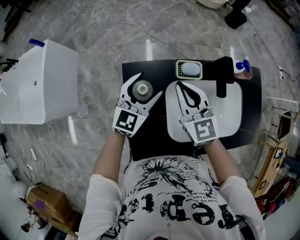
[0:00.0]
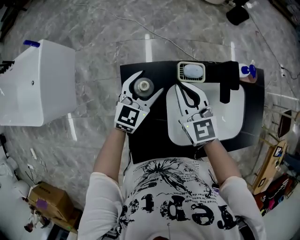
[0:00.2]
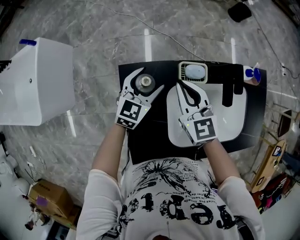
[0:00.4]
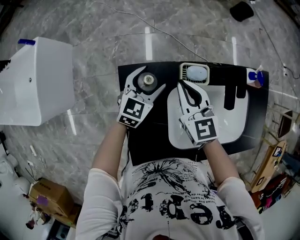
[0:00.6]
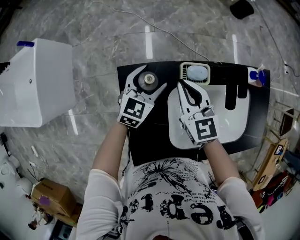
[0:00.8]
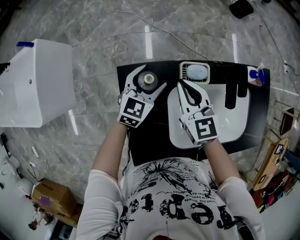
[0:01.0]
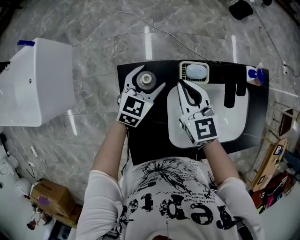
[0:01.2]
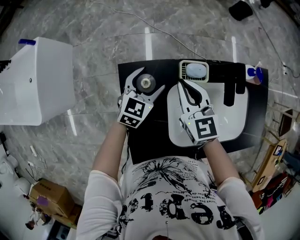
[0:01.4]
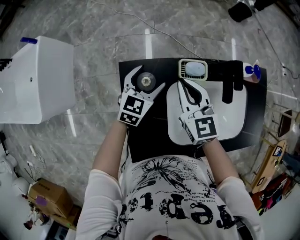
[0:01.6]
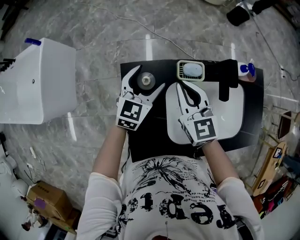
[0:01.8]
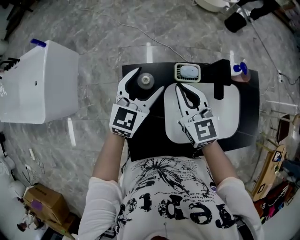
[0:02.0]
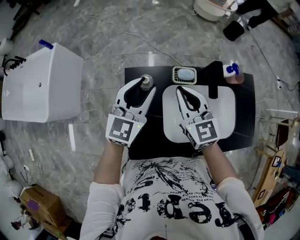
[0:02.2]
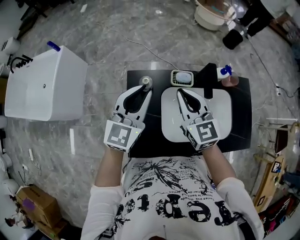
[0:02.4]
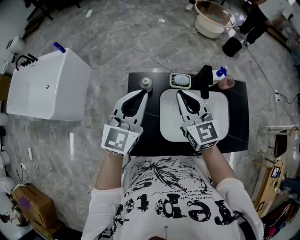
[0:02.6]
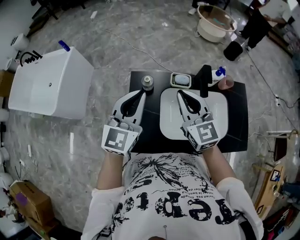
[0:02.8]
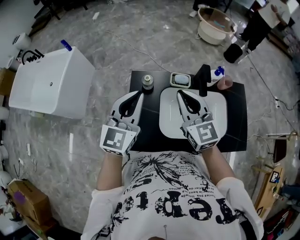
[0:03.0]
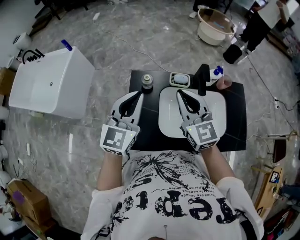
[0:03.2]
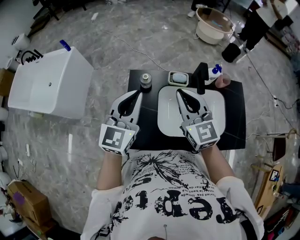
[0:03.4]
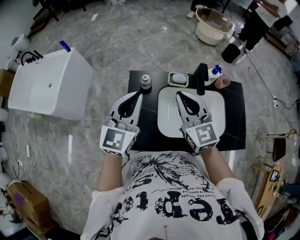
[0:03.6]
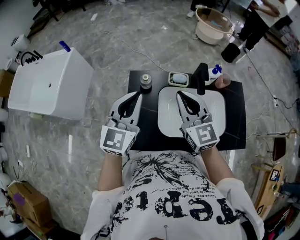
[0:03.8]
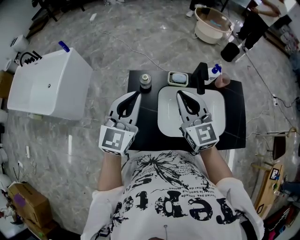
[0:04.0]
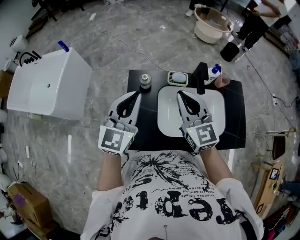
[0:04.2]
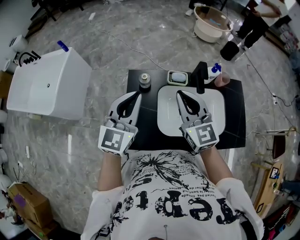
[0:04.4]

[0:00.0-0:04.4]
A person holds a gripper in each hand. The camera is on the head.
0:00.0 to 0:01.4: The right gripper travels downward by some 5 cm. Meanwhile the left gripper moves downward and forward, some 10 cm.
0:01.4 to 0:03.0: The grippers both shift upward and backward by about 35 cm. The left gripper rotates some 30 degrees, and closes its fingers.
0:03.0 to 0:04.4: The two grippers keep their place.

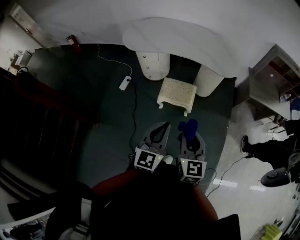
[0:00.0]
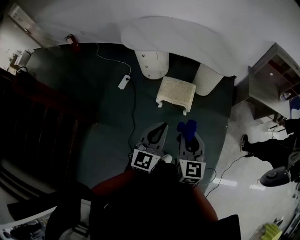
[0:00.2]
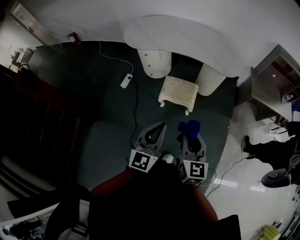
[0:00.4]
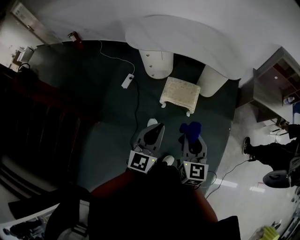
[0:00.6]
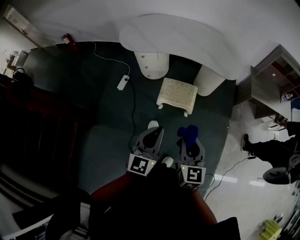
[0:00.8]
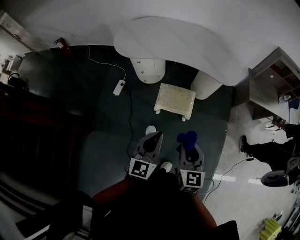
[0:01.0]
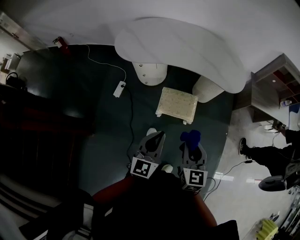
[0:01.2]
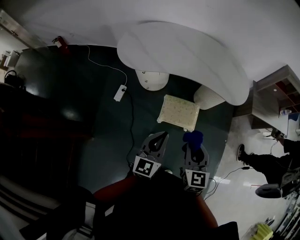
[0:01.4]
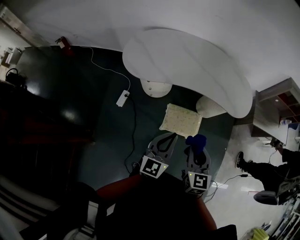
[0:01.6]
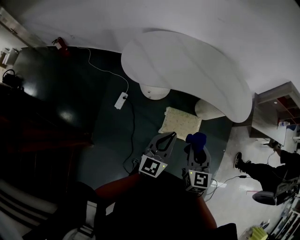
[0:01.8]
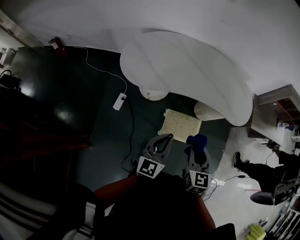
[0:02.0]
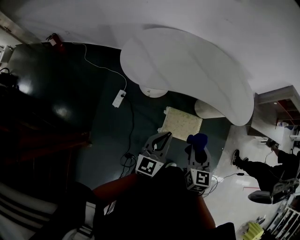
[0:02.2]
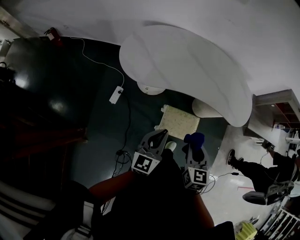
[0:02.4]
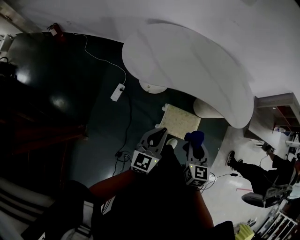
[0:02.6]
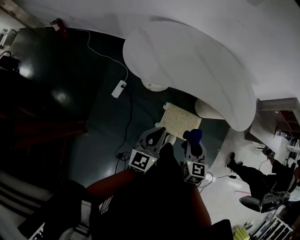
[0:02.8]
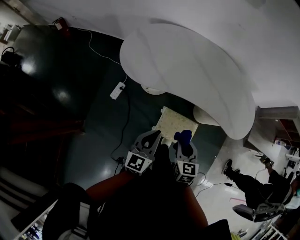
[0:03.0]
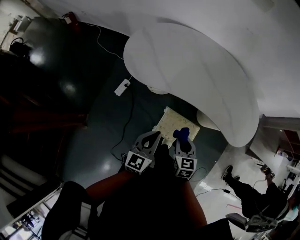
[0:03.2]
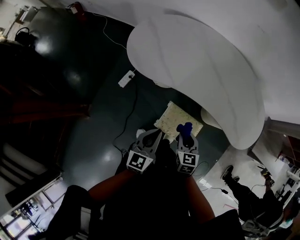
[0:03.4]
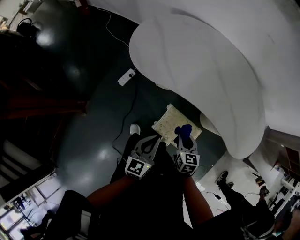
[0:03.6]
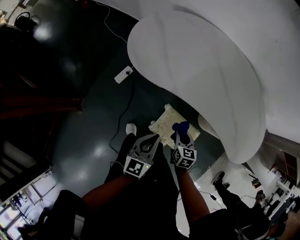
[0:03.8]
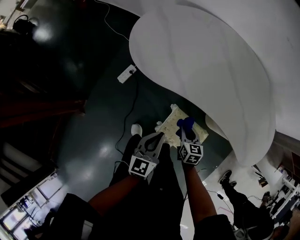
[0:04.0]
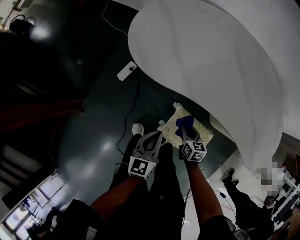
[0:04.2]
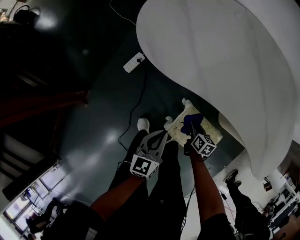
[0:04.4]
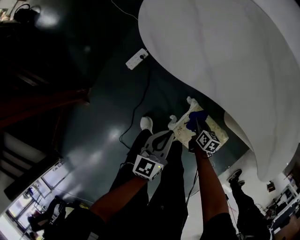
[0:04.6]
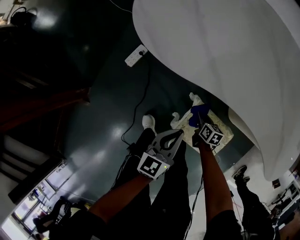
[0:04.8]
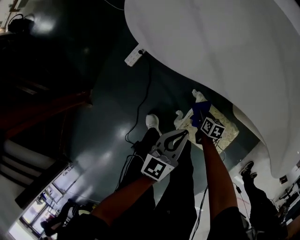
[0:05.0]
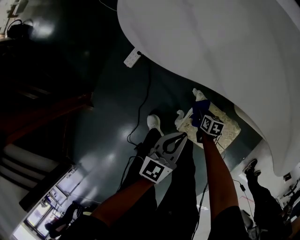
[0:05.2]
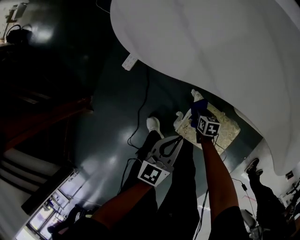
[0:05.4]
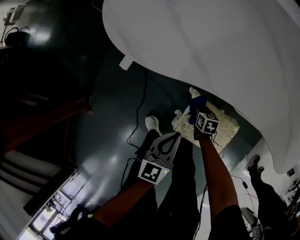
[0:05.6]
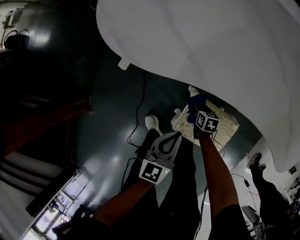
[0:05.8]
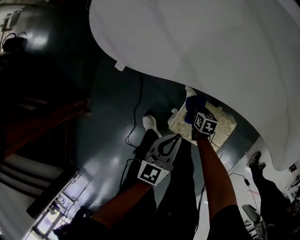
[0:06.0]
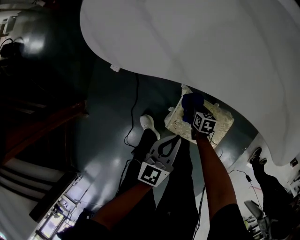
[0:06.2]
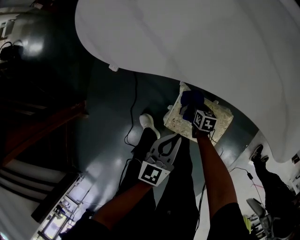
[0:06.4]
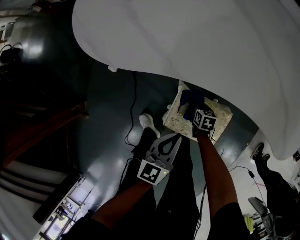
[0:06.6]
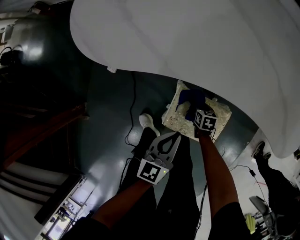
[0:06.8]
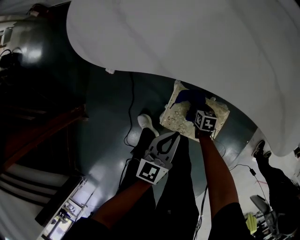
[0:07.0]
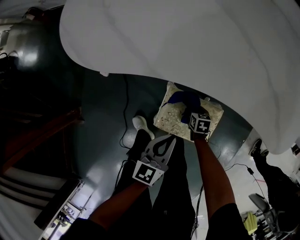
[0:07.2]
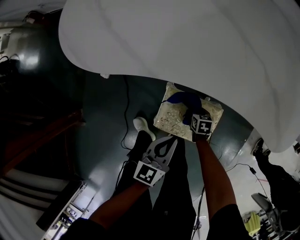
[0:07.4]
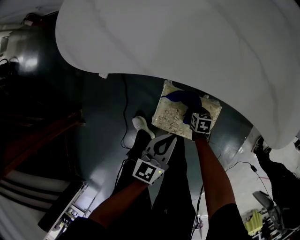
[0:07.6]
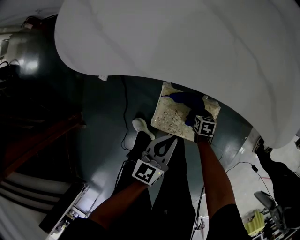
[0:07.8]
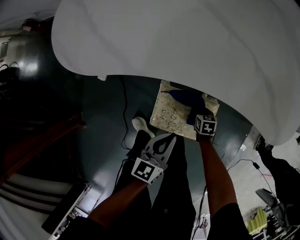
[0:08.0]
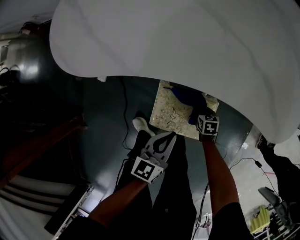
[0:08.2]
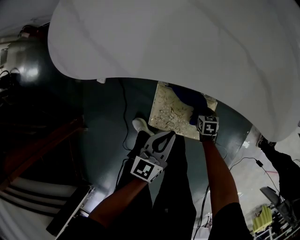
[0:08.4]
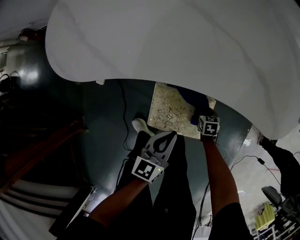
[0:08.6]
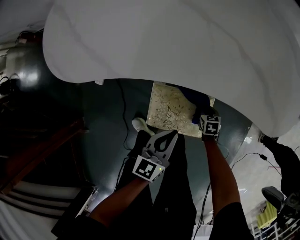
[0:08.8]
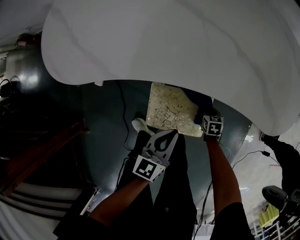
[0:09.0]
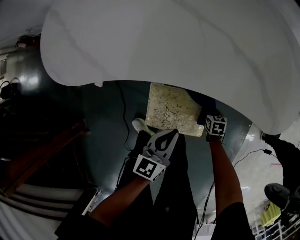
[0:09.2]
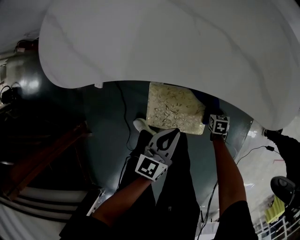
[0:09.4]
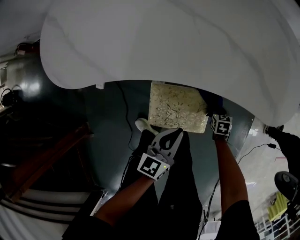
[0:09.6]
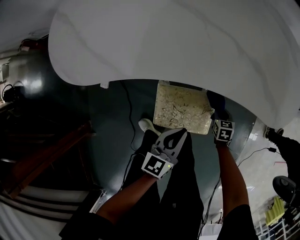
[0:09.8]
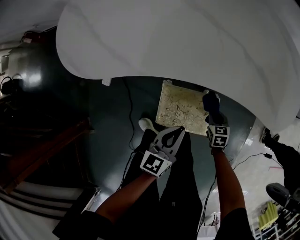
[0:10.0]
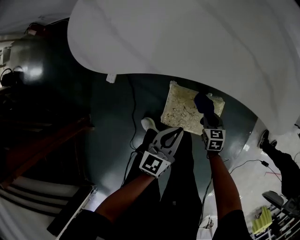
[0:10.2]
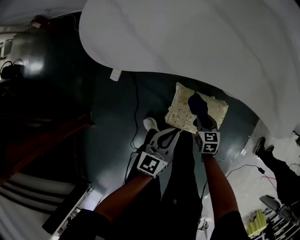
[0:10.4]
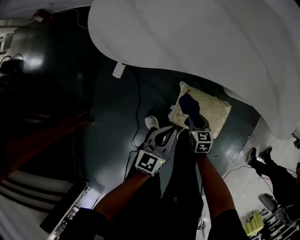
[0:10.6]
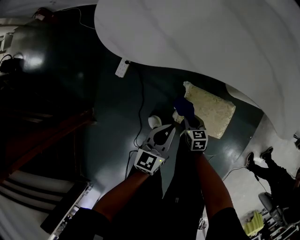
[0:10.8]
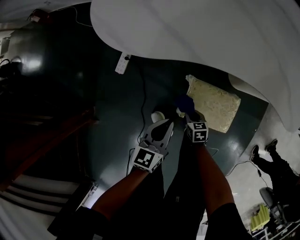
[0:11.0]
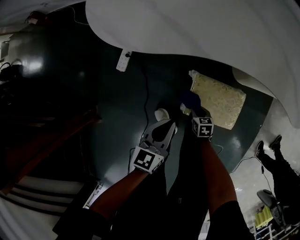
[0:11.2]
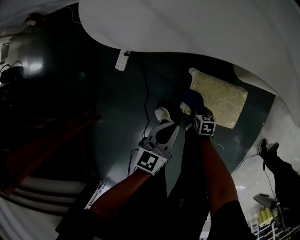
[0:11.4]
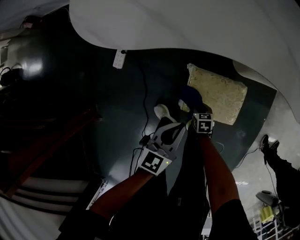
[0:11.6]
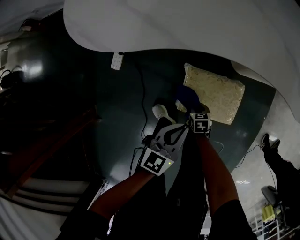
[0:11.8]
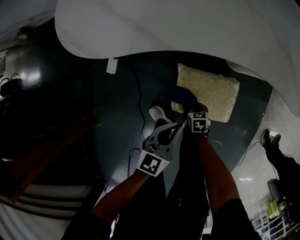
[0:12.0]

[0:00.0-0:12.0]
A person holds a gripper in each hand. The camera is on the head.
0:00.0 to 0:01.6: The grippers both shift forward and to the left by roughly 30 cm.
0:01.6 to 0:03.0: The left gripper travels forward, downward and to the left by approximately 15 cm. Meanwhile the right gripper is displaced forward and downward by roughly 20 cm.
0:03.0 to 0:04.4: The right gripper moves downward, some 40 cm, and swivels roughly 40 degrees. Meanwhile the left gripper goes about 25 cm downward, and turns by approximately 20 degrees.
0:04.4 to 0:06.0: The left gripper heads to the right and downward, covering roughly 10 cm. Meanwhile the right gripper is displaced downward by some 10 cm.
0:06.0 to 0:07.6: The right gripper goes approximately 15 cm to the right and backward, while the left gripper goes some 10 cm to the right.
0:07.6 to 0:09.0: The right gripper moves to the right, some 10 cm. Meanwhile the left gripper goes roughly 5 cm to the right.
0:09.0 to 0:10.4: The left gripper goes roughly 10 cm to the left, while the right gripper heads to the left and upward, covering some 25 cm.
0:10.4 to 0:12.0: The right gripper shifts some 20 cm downward, backward and to the left; the left gripper moves roughly 10 cm to the left and comes back.

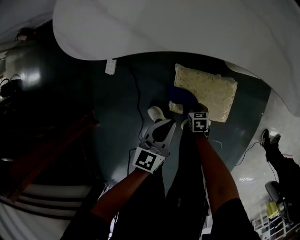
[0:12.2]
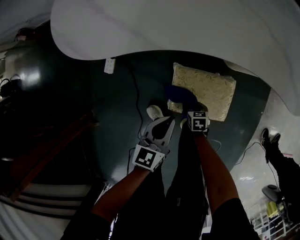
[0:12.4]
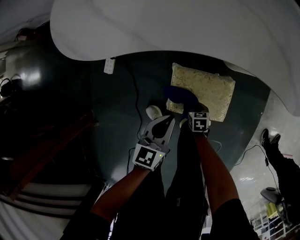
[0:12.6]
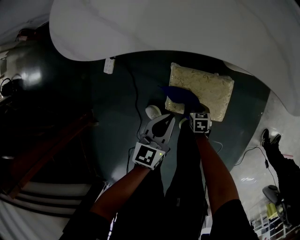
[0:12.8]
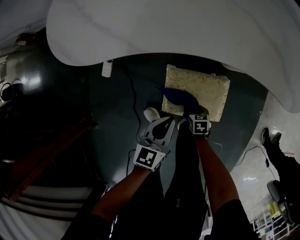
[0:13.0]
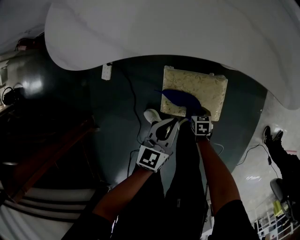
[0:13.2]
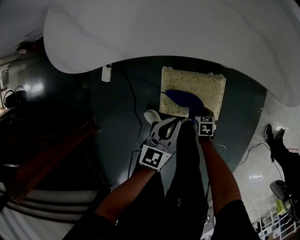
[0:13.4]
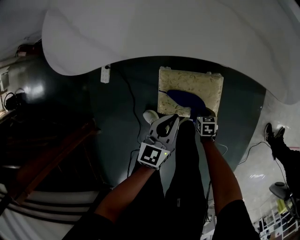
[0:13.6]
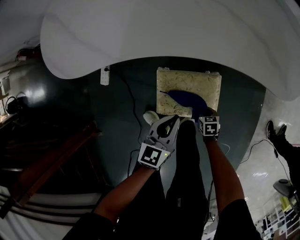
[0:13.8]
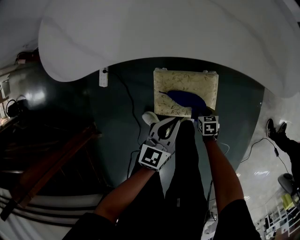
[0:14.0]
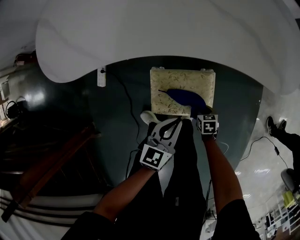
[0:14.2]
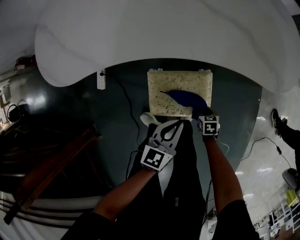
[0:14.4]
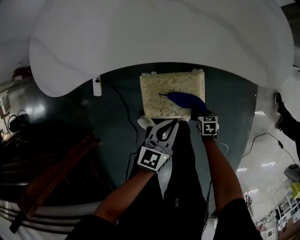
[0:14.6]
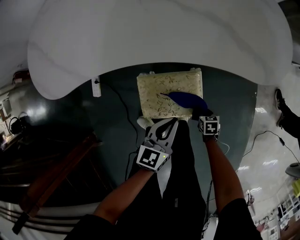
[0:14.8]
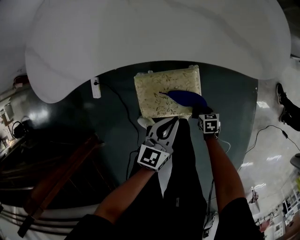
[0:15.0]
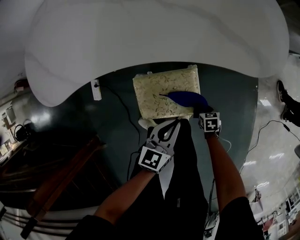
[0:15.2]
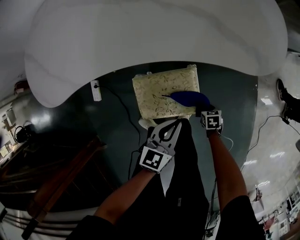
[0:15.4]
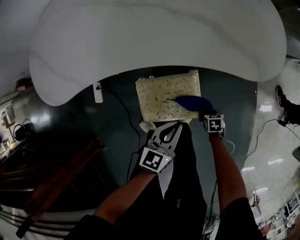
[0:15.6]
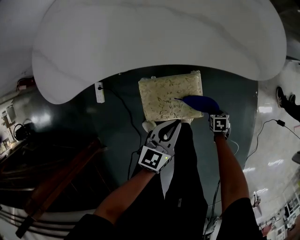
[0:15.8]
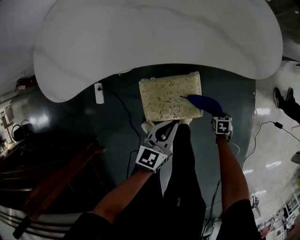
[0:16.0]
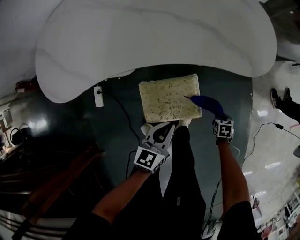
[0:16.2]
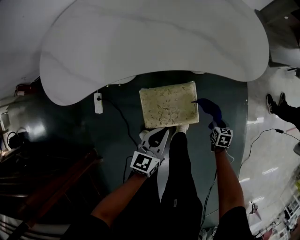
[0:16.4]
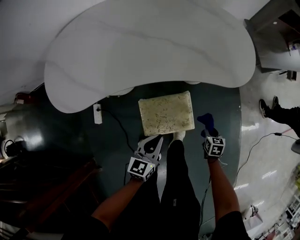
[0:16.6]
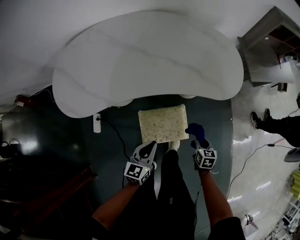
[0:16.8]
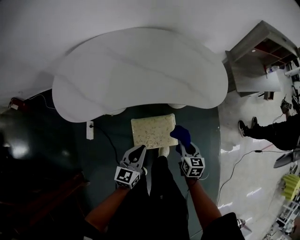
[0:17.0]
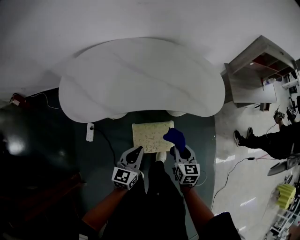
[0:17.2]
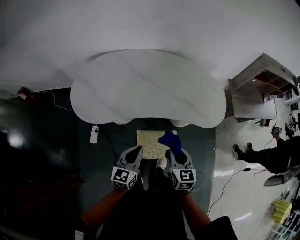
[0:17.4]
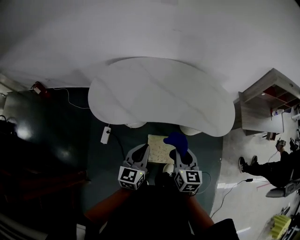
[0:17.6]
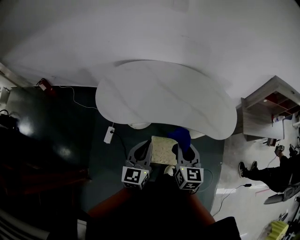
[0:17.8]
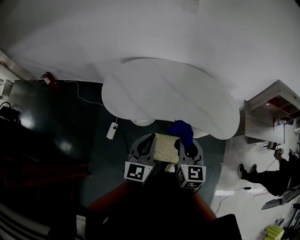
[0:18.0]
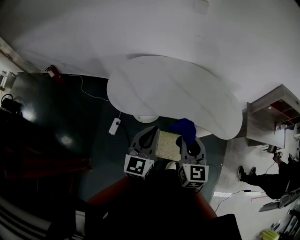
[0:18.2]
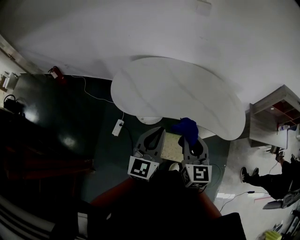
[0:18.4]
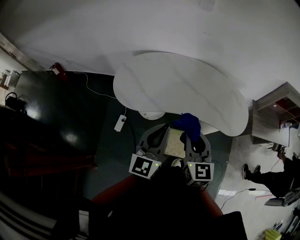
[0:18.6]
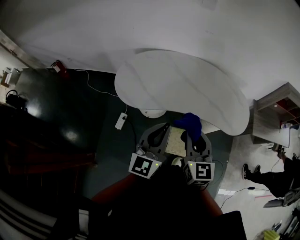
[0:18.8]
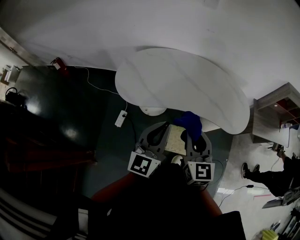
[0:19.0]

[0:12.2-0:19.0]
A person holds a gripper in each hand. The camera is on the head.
0:12.2 to 0:13.6: Both grippers move to the right, approximately 10 cm.
0:13.6 to 0:15.0: Both grippers travel together to the right, about 10 cm.
0:15.0 to 0:16.2: The right gripper moves some 10 cm, while the left gripper ends up some 5 cm from where it was.
0:16.2 to 0:17.6: The right gripper heads upward and to the left, covering about 60 cm, and angles its fingers upward, by roughly 50 degrees. Meanwhile the left gripper goes roughly 35 cm upward and to the left, and rotates about 30 degrees.
0:17.6 to 0:19.0: The left gripper travels upward by approximately 15 cm, and swivels roughly 20 degrees, while the right gripper heads upward and to the left, covering about 20 cm, and turns by about 20 degrees.
